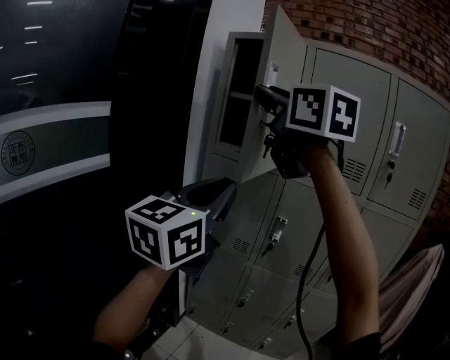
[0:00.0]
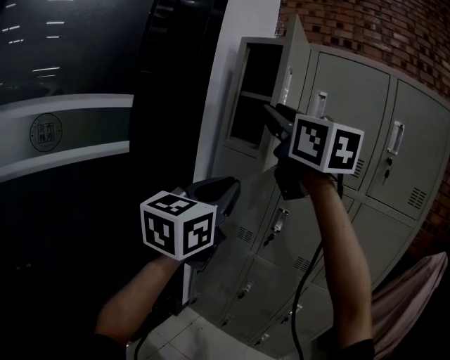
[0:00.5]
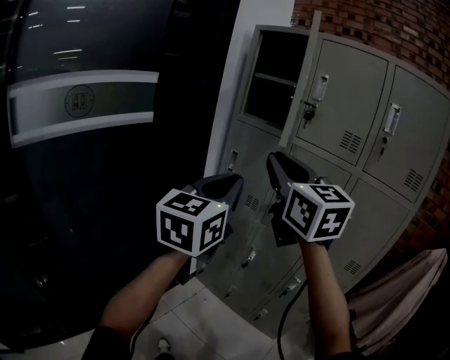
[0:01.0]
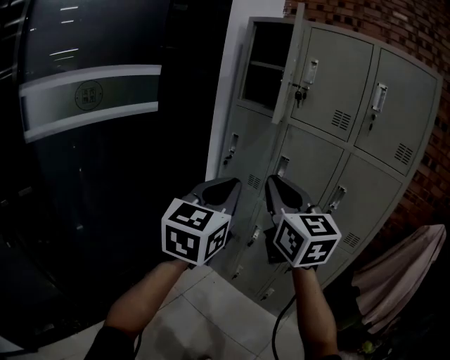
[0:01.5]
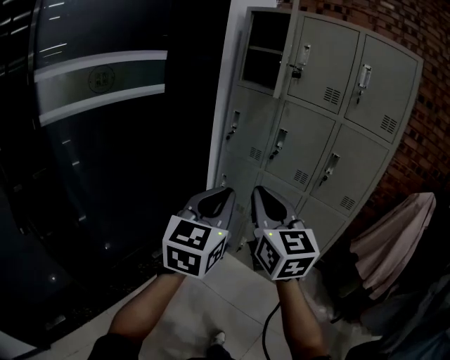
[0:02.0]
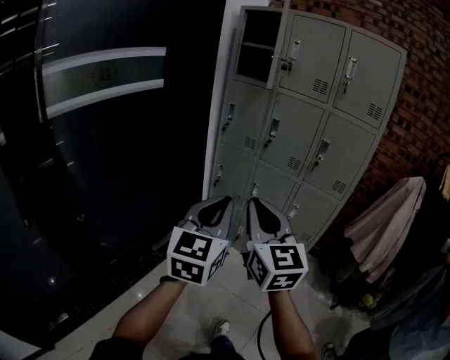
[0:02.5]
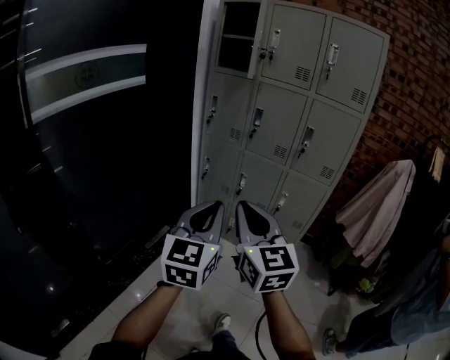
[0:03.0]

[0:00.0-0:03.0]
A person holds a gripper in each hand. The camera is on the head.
0:00.0 to 0:01.5: The left gripper travels backward and downward by approximately 25 cm, and changes its angle by approximately 20 degrees. The right gripper is displaced backward and downward by roughly 40 cm, and closes up.
0:01.5 to 0:03.0: Both grippers travel together backward and downward, roughly 30 cm.

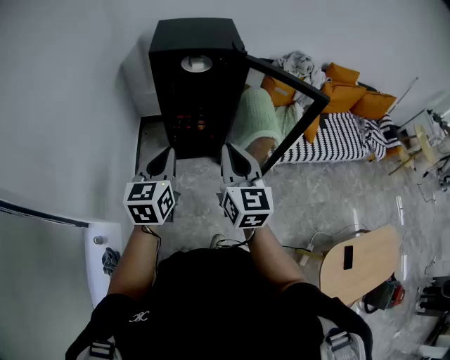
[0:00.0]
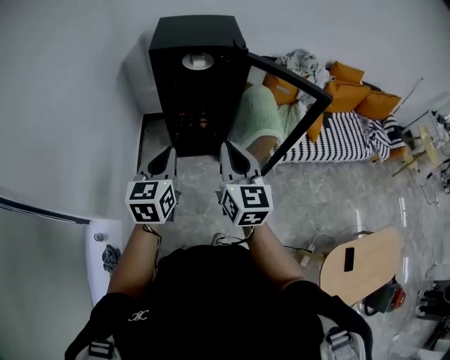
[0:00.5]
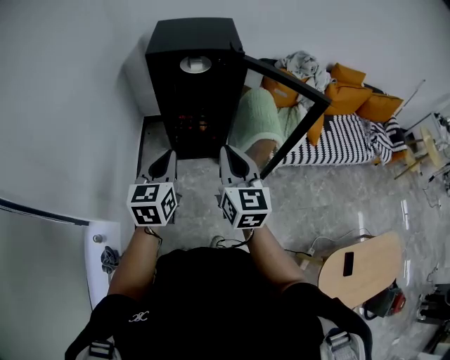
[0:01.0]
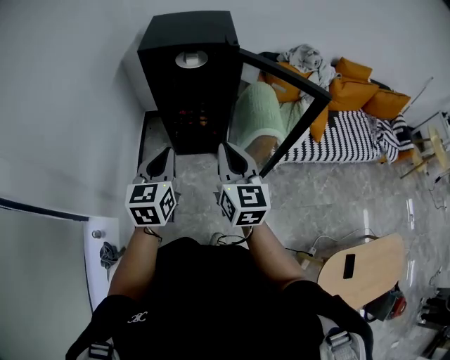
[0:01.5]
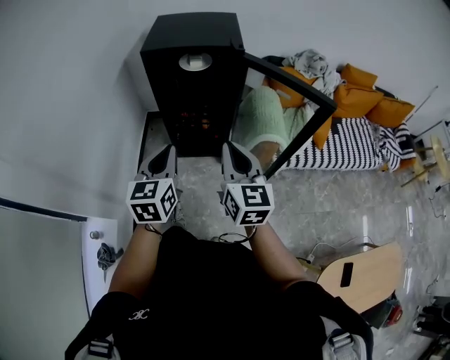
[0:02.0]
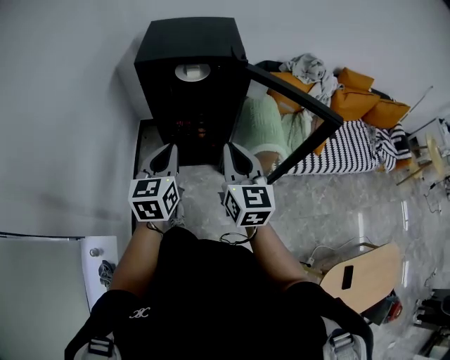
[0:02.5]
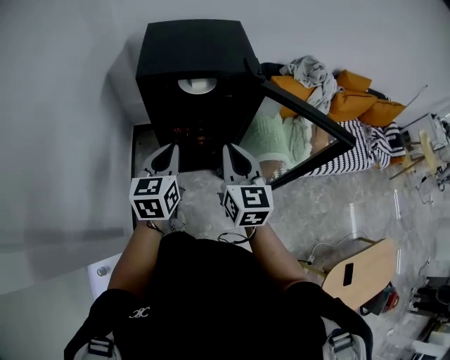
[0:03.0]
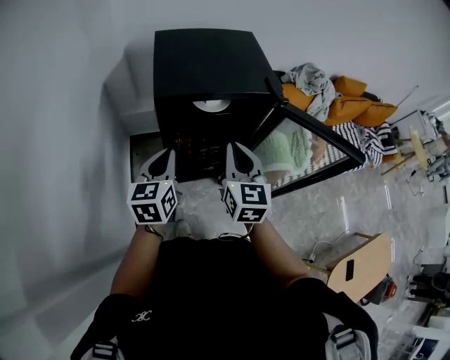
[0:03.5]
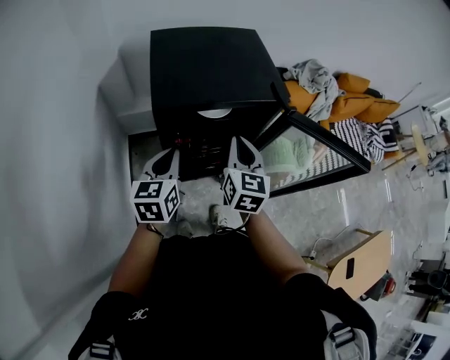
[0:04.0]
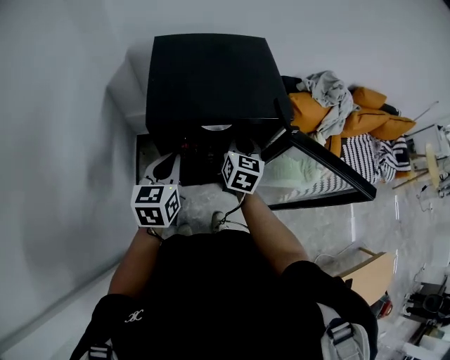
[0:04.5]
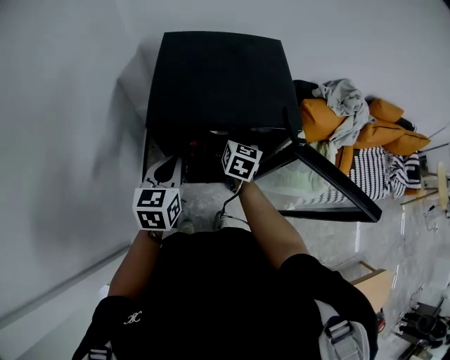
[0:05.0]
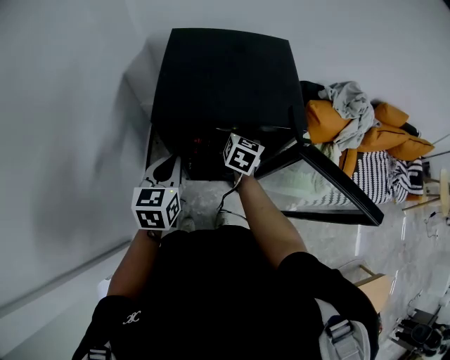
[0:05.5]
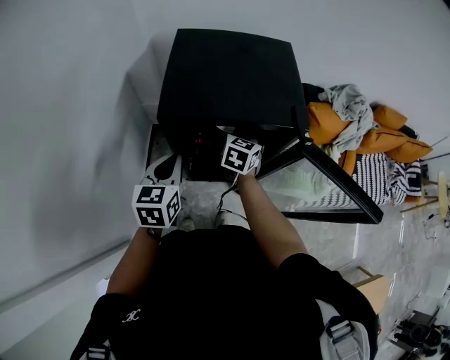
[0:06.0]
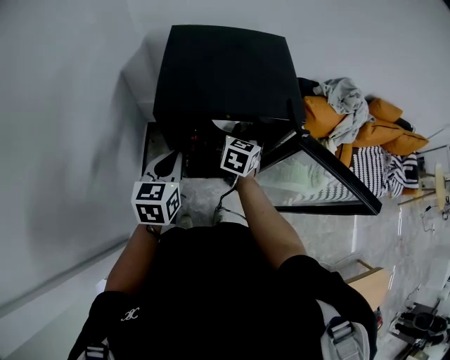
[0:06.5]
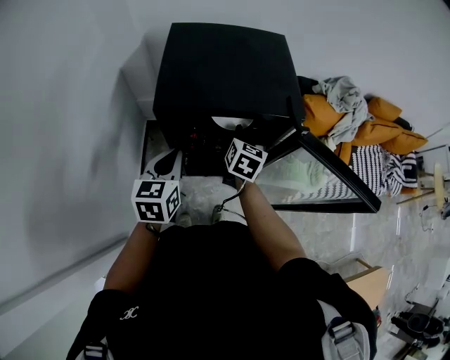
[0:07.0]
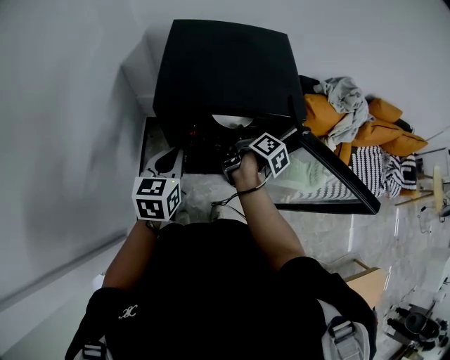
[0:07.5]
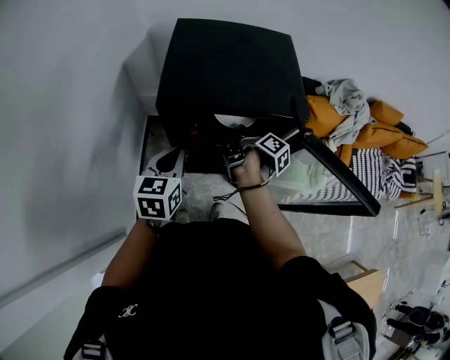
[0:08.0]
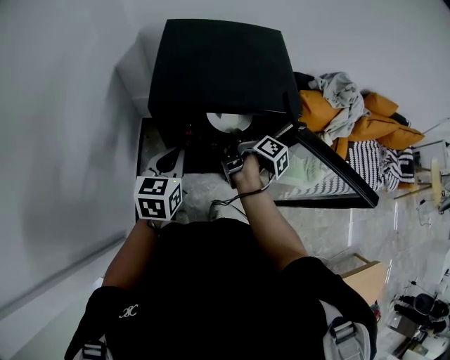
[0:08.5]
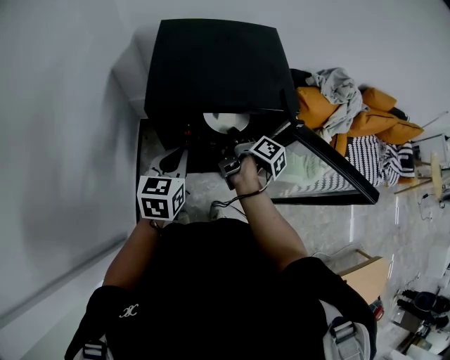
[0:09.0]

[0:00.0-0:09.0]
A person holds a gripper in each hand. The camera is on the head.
0:00.0 to 0:02.0: The right gripper shifts approximately 10 cm forward and to the right, while the left gripper goes some 5 cm to the right.
0:02.0 to 0:04.5: The left gripper heads forward and to the left, covering some 35 cm. The right gripper shifts about 40 cm forward, and turns by roughly 30 degrees.
0:07.0 to 0:09.0: The right gripper twists roughly 60 degrees clockwise, seen from behind.

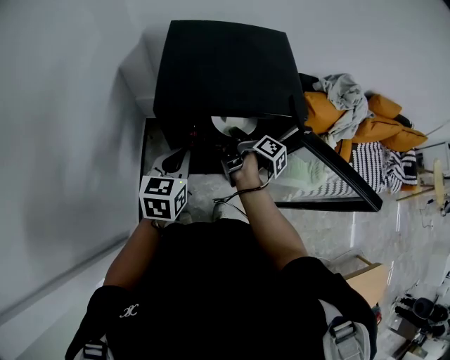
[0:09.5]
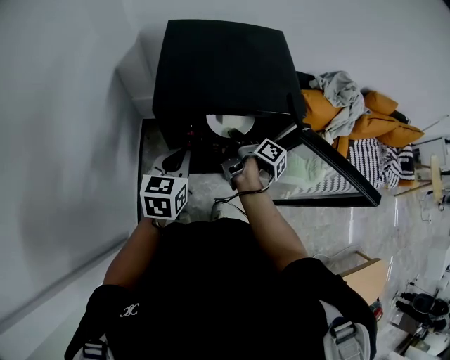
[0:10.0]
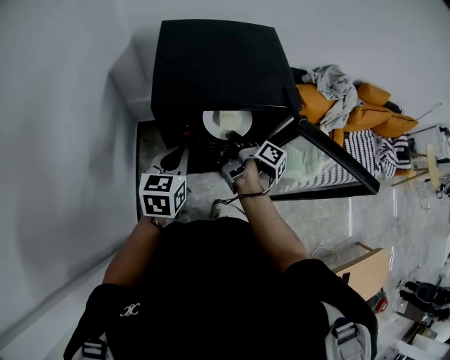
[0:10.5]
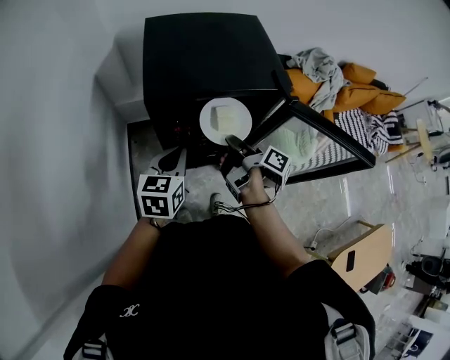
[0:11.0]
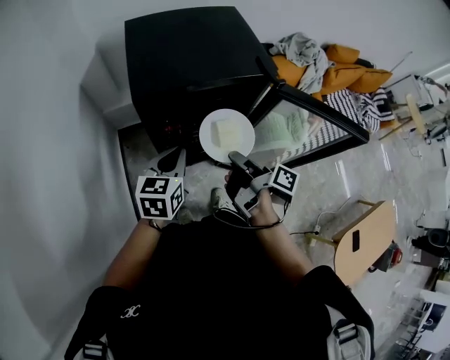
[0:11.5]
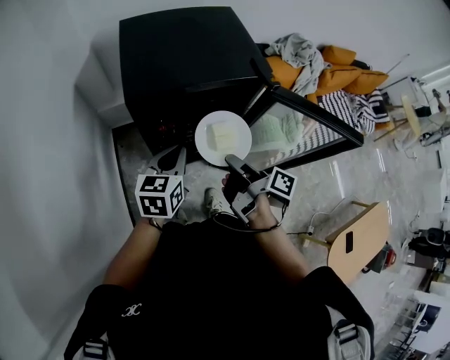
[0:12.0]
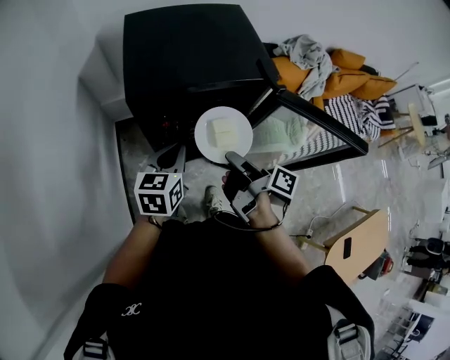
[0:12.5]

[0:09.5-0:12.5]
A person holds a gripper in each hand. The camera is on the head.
0:09.5 to 0:11.0: The right gripper is displaced backward by approximately 10 cm.
0:11.0 to 0:12.5: The right gripper goes approximately 10 cm backward.

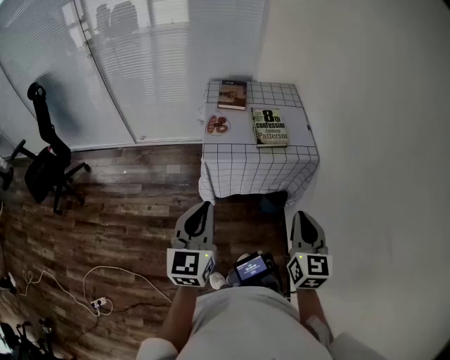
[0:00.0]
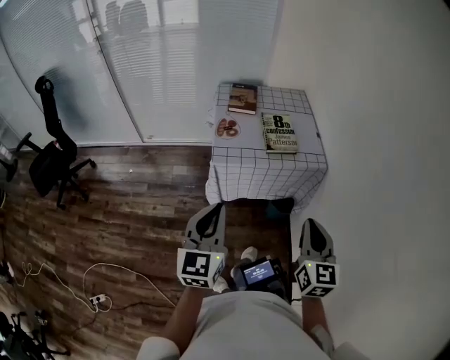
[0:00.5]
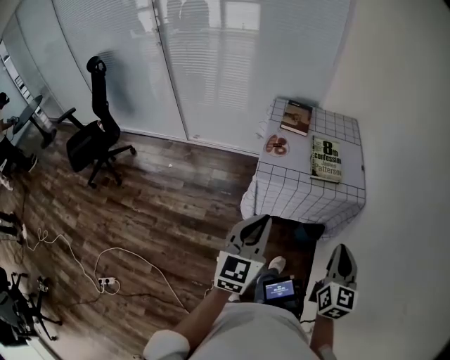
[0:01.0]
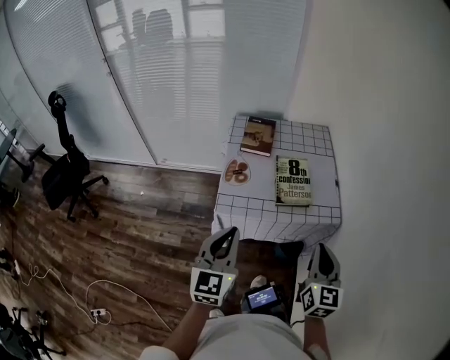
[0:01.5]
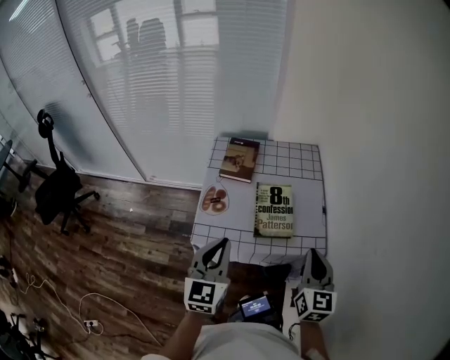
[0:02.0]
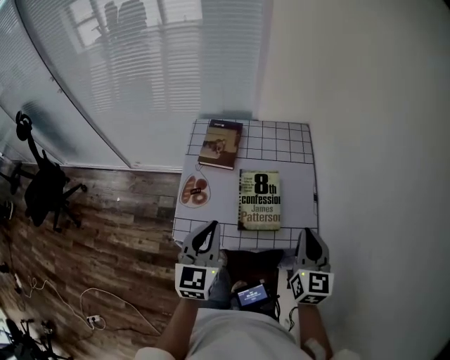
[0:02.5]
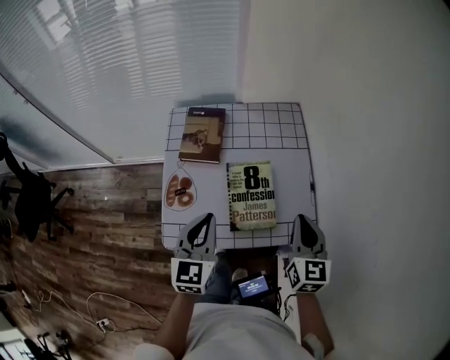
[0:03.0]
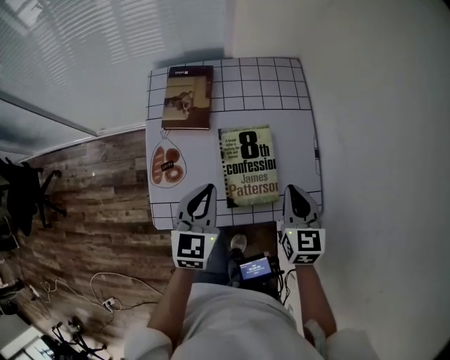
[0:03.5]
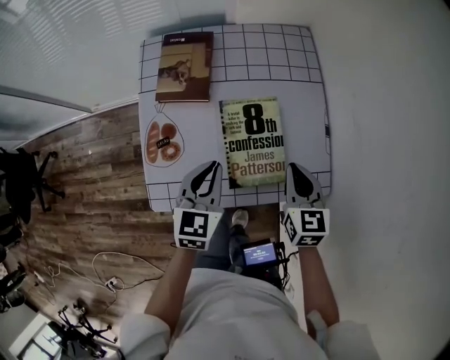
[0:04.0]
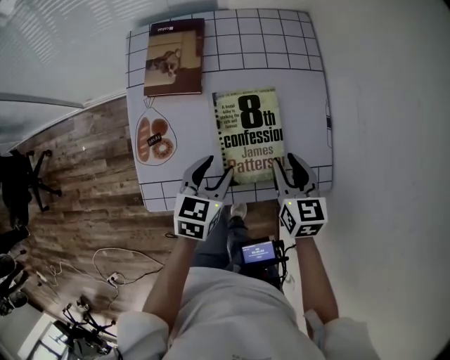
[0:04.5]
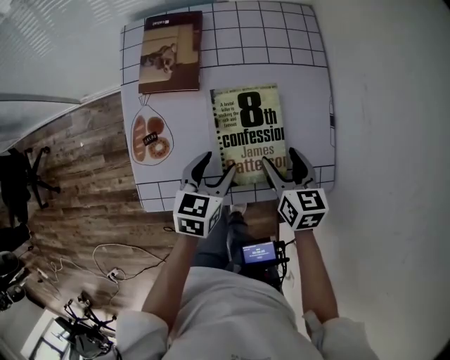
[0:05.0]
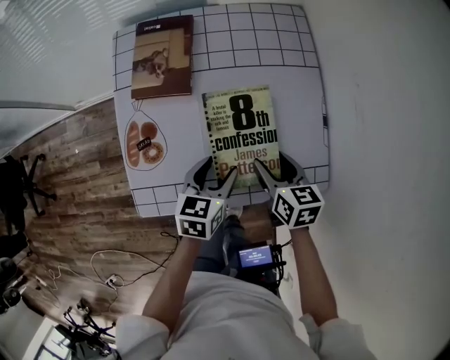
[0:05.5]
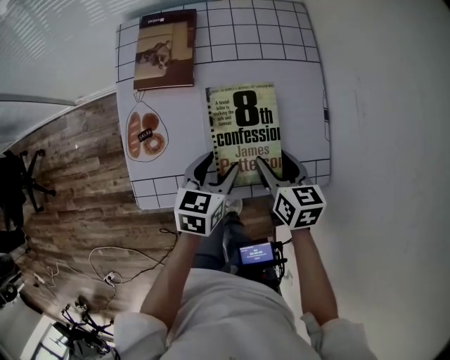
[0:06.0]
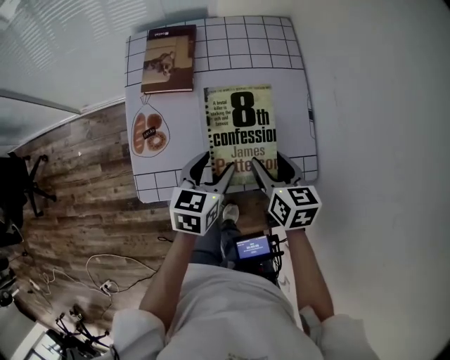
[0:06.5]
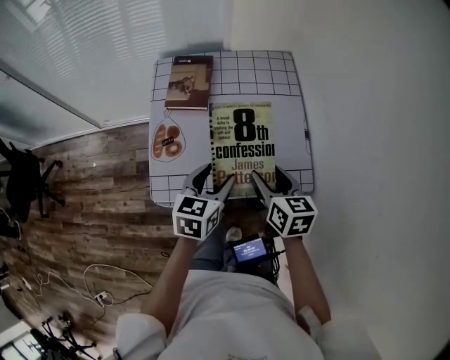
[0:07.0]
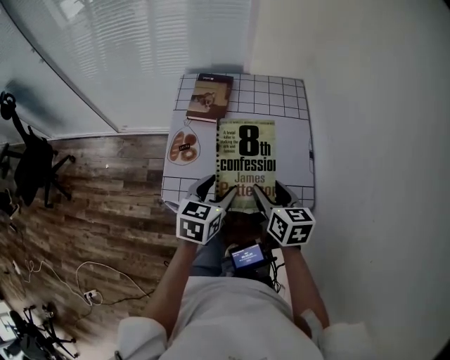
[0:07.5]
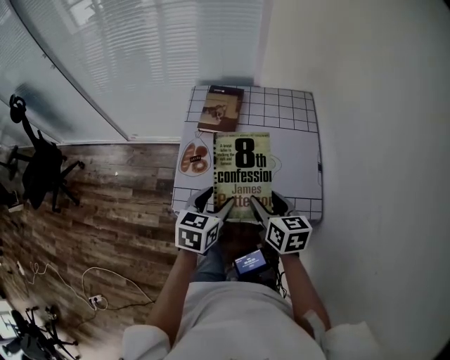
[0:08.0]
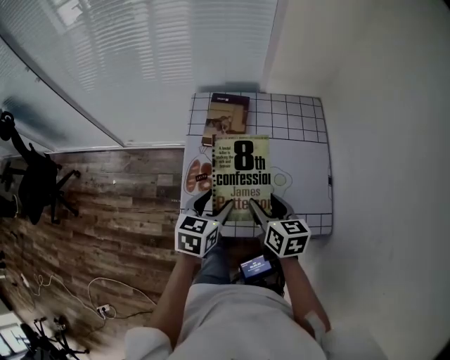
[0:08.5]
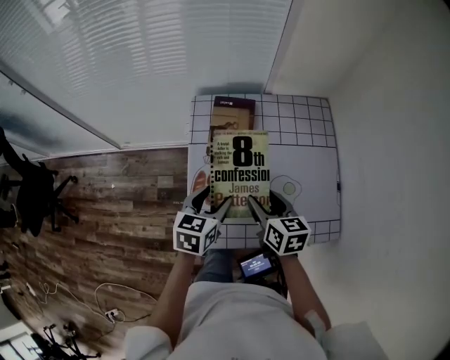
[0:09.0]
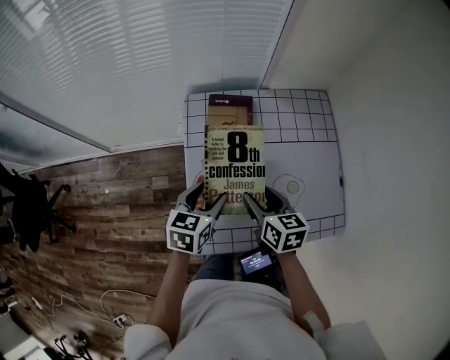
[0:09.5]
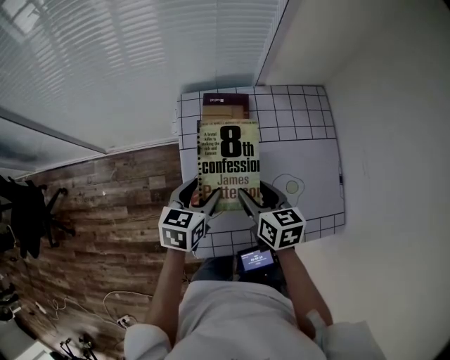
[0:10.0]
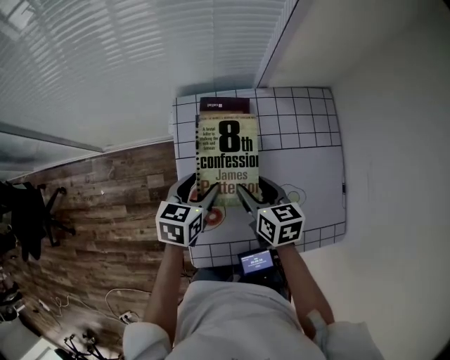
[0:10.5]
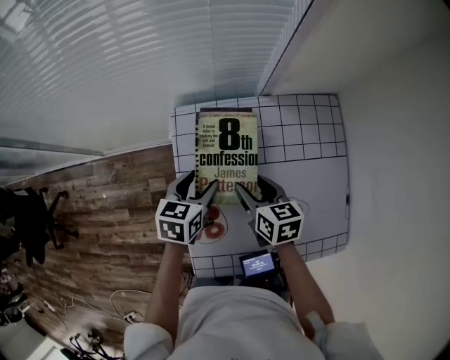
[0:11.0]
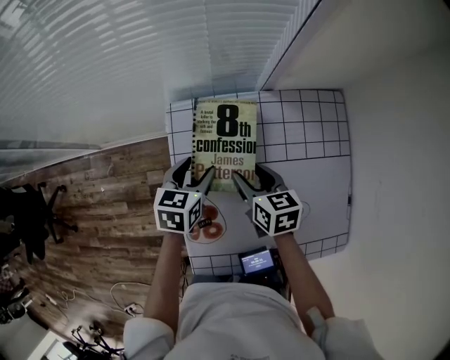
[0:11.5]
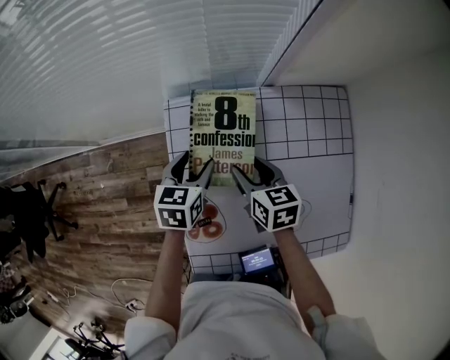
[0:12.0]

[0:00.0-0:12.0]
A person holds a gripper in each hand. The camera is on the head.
0:00.0 to 0:02.0: The grippers both shift forward by roughly 30 cm.
0:02.0 to 0:04.0: The two grippers go about 25 cm downward and forward. The right gripper changes its angle by roughly 20 degrees. Meanwhile the left gripper turns by about 30 degrees.
0:04.0 to 0:06.0: Both grippers travel together downward, roughly 10 cm. The left gripper changes its angle by approximately 20 degrees, and opens up. The right gripper swivels about 20 degrees, and opens its fingers.
0:06.0 to 0:08.0: The two grippers go some 15 cm upward, backward and to the left.
0:08.0 to 0:10.0: Both grippers move forward and to the left, approximately 20 cm.
0:10.0 to 0:12.0: The two grippers go some 15 cm forward.
